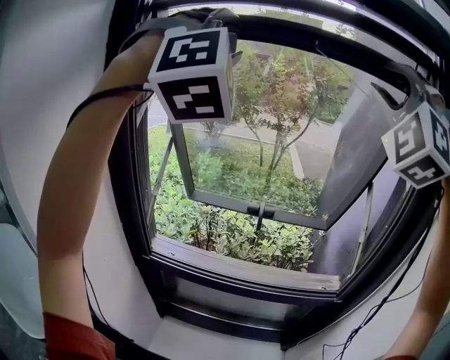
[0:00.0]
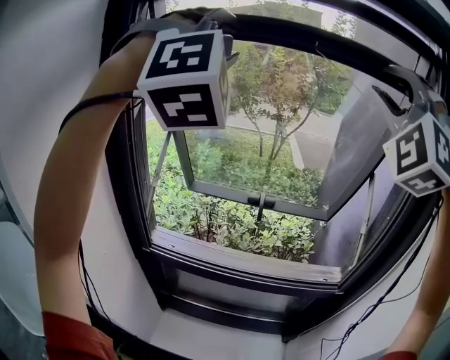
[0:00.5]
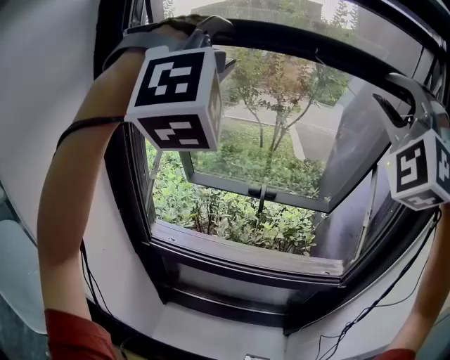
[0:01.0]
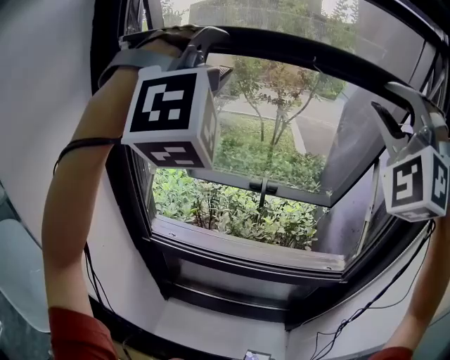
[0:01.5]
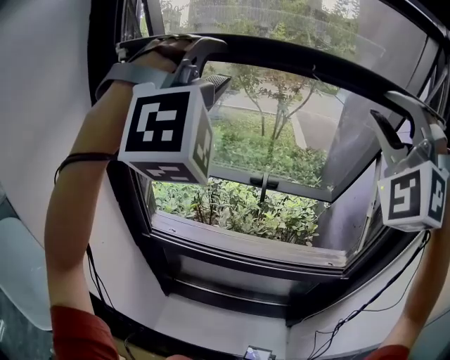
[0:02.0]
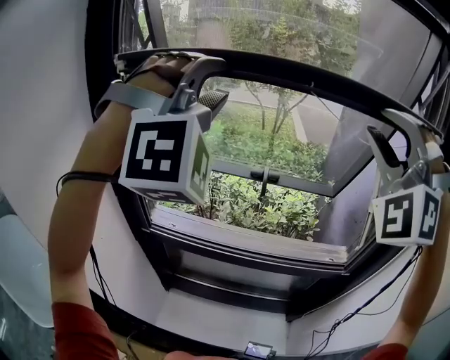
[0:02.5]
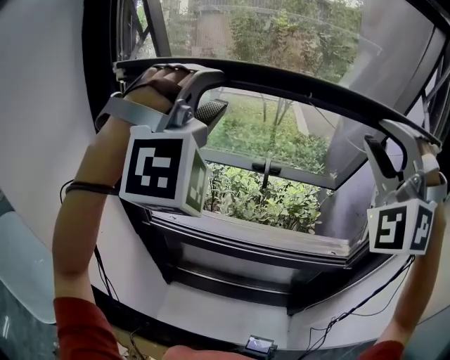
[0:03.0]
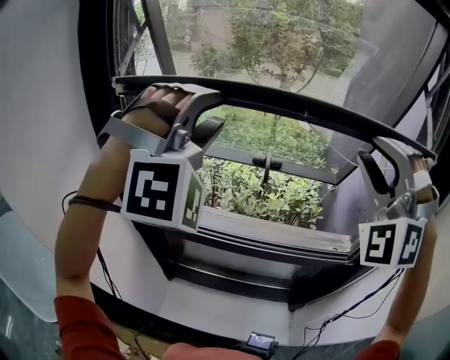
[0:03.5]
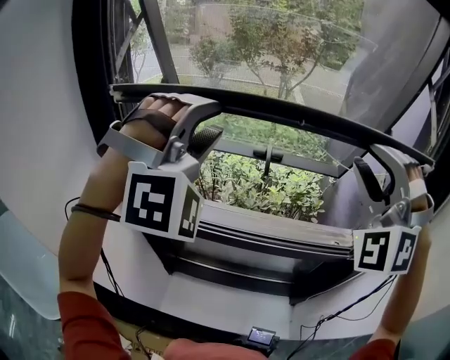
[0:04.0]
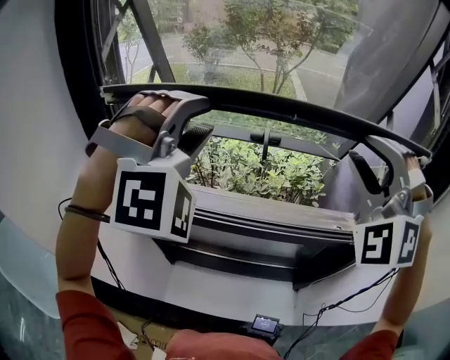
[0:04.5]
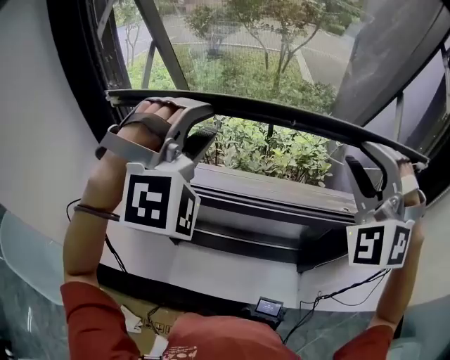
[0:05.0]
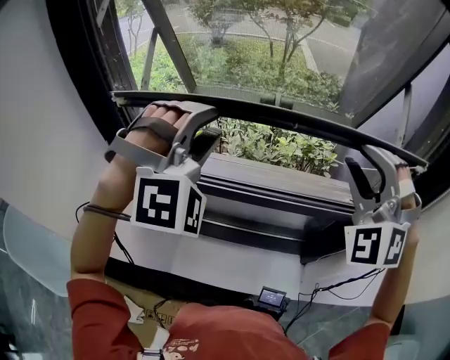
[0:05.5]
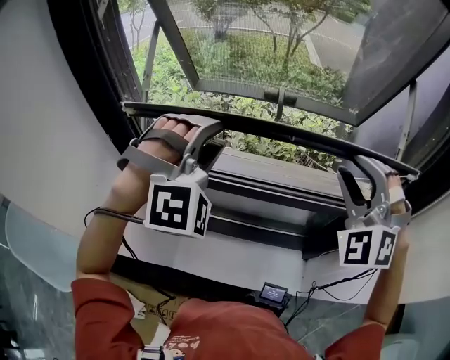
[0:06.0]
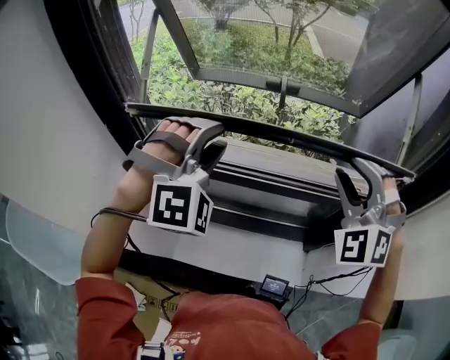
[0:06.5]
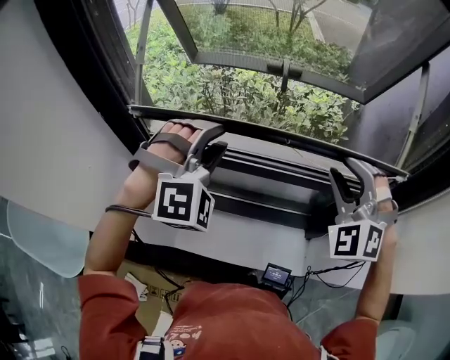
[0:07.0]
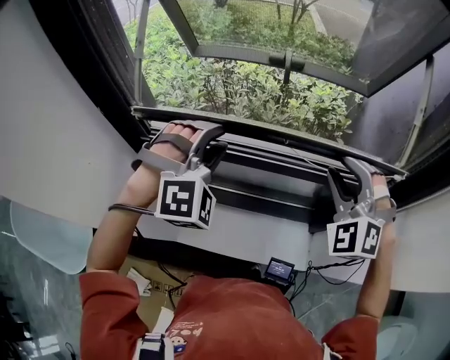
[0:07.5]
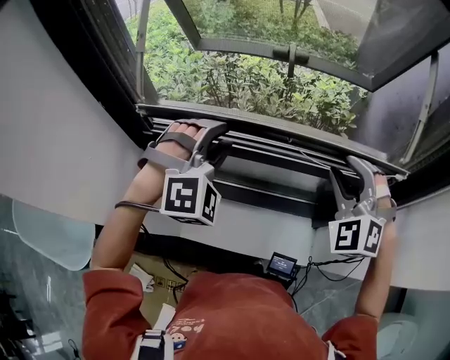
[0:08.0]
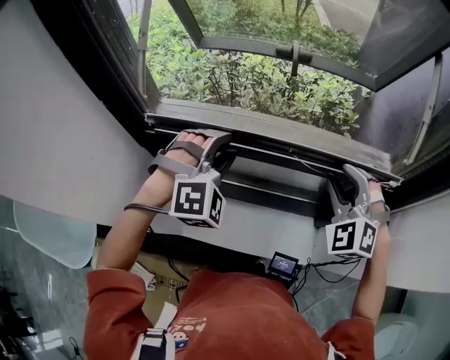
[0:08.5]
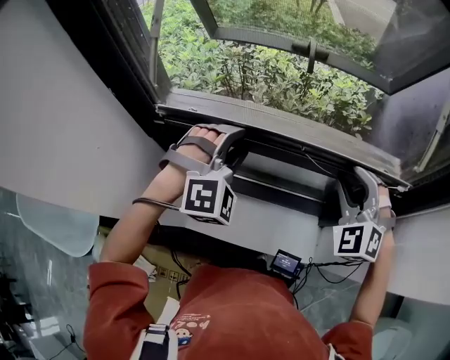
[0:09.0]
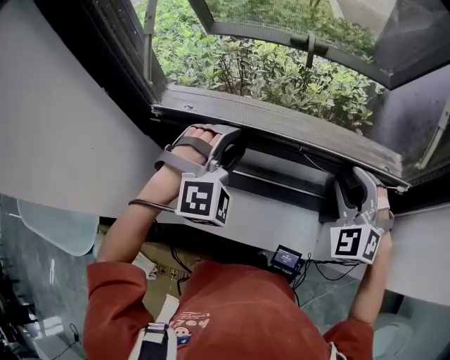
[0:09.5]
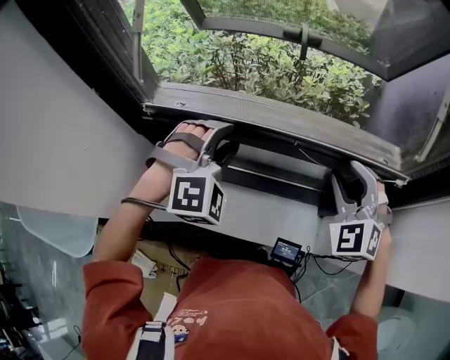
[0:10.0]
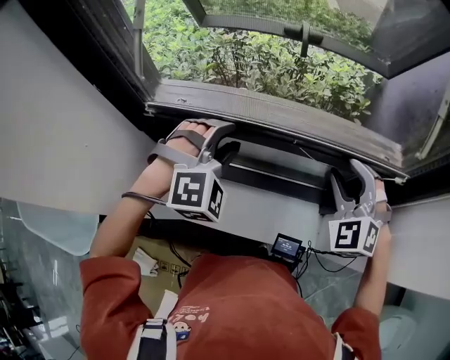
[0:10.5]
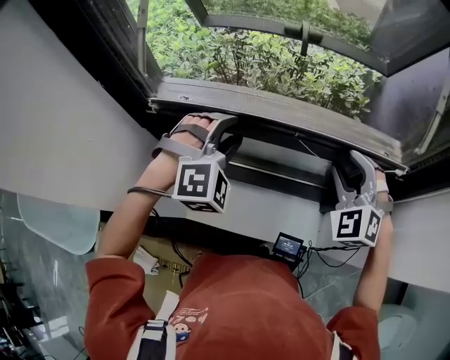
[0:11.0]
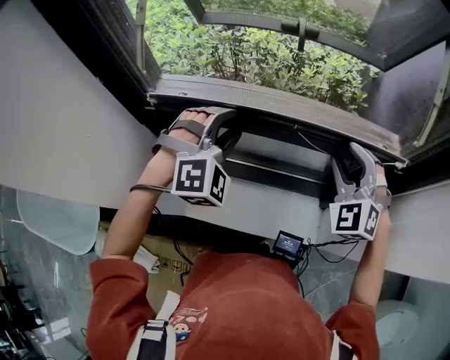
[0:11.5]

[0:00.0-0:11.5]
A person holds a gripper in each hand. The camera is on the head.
0.0 to 2.0 s: The grippers both shift downward by some 10 cm.
2.0 to 4.0 s: Both grippers travel together downward, approximately 15 cm.
4.0 to 6.0 s: The grippers both shift downward by some 20 cm. The right gripper turns by about 20 degrees.
6.0 to 7.5 s: Both grippers move downward, approximately 10 cm.
7.5 to 9.5 s: Both grippers move downward, some 5 cm.
9.5 to 11.5 s: The grippers make only small movements.

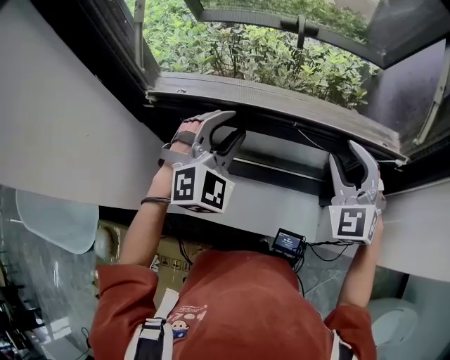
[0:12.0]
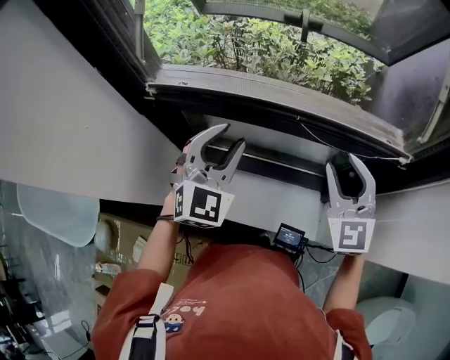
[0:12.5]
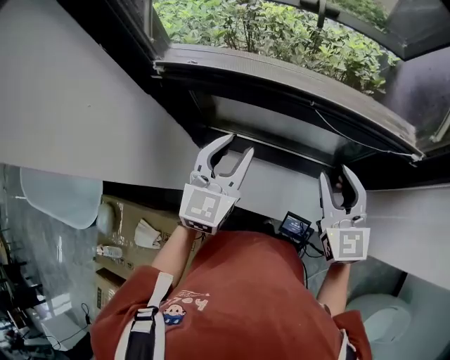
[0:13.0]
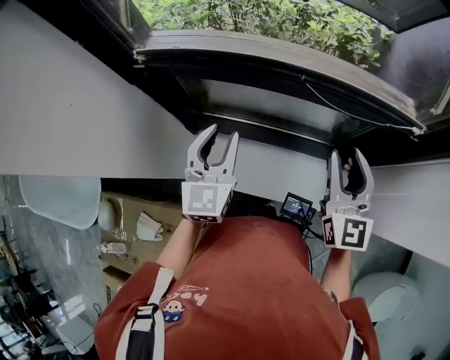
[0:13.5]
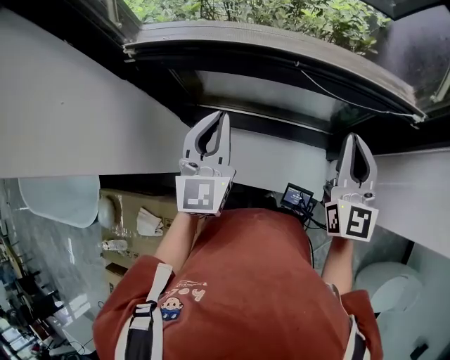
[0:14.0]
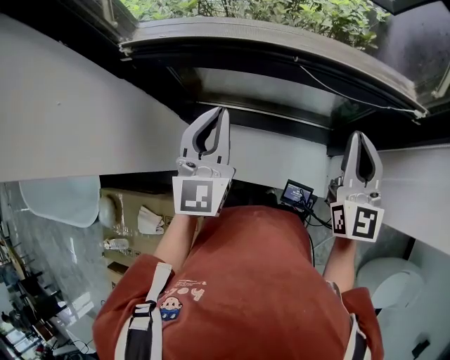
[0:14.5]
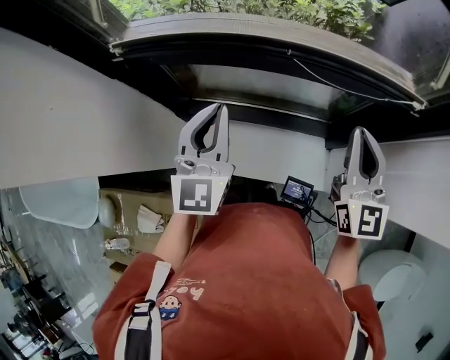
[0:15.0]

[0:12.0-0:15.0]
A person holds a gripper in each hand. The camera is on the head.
12.0 to 13.5 s: The left gripper is displaced downward and backward by roughly 10 cm, and rolls counterclockwise, seen from behind, by approximately 50 degrees. Meanwhile the right gripper is displaced backward by approximately 10 cm, and changes its angle by some 40 degrees.
13.5 to 15.0 s: The left gripper shifts by some 5 cm, and closes, while the right gripper closes its fingers.

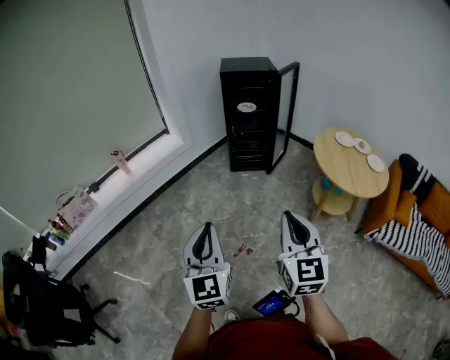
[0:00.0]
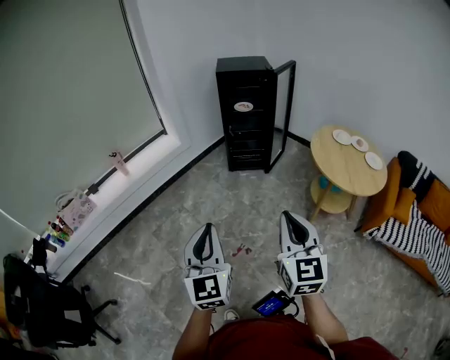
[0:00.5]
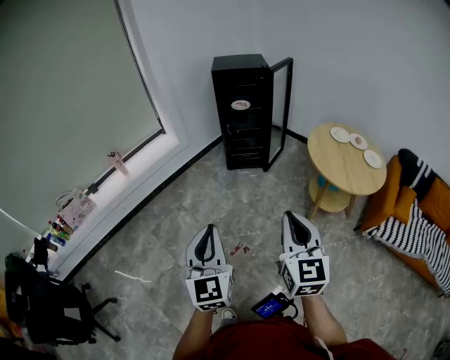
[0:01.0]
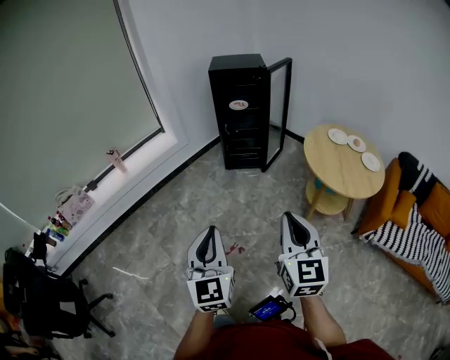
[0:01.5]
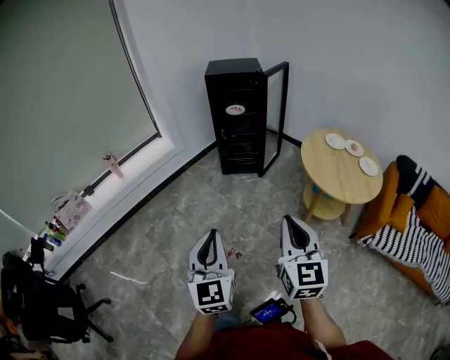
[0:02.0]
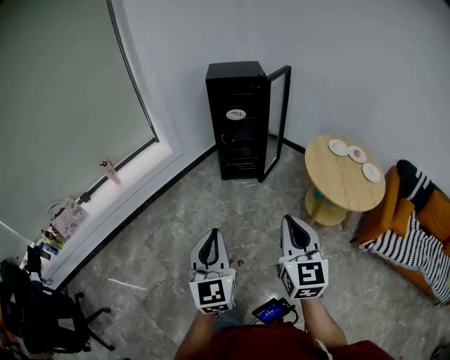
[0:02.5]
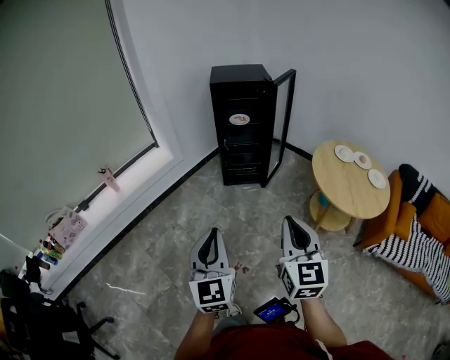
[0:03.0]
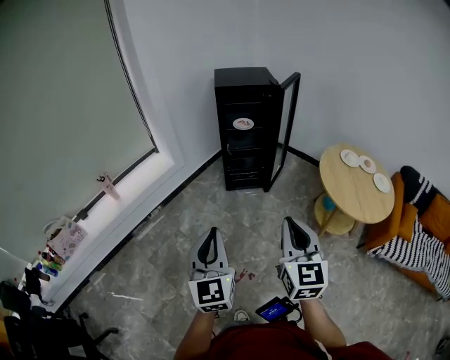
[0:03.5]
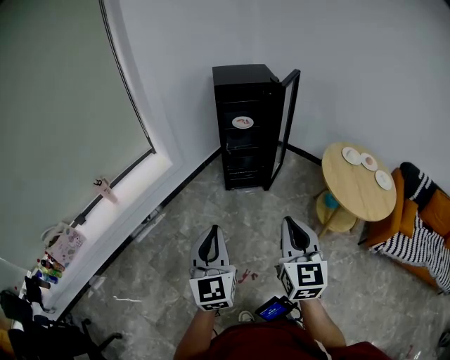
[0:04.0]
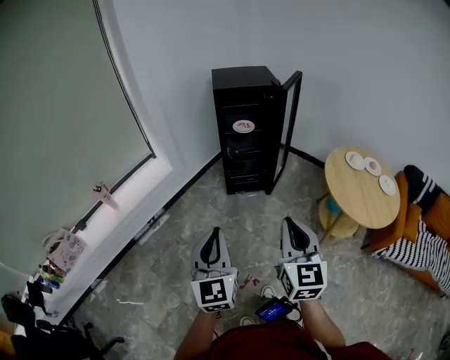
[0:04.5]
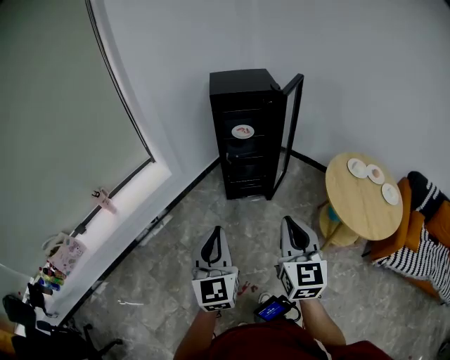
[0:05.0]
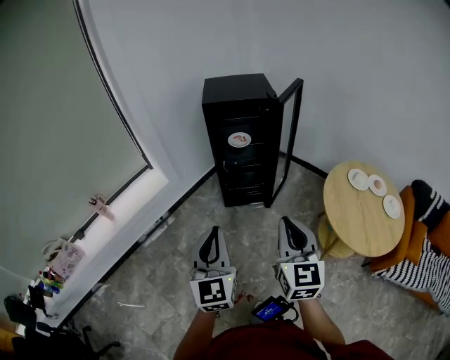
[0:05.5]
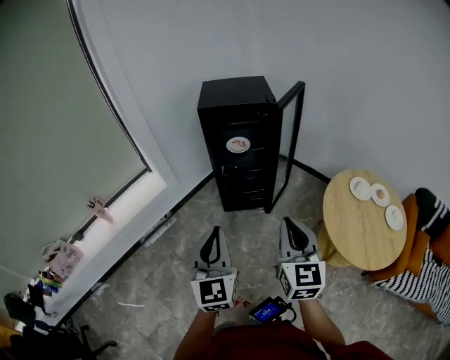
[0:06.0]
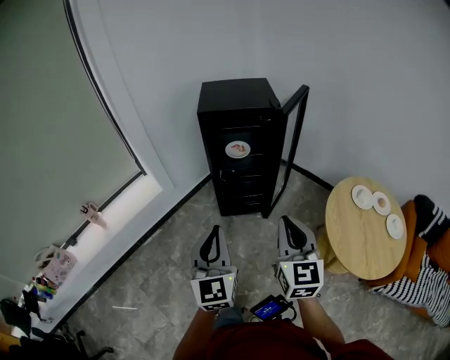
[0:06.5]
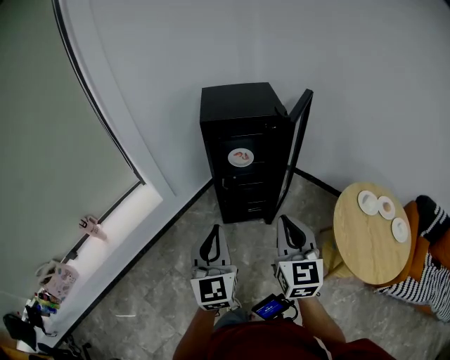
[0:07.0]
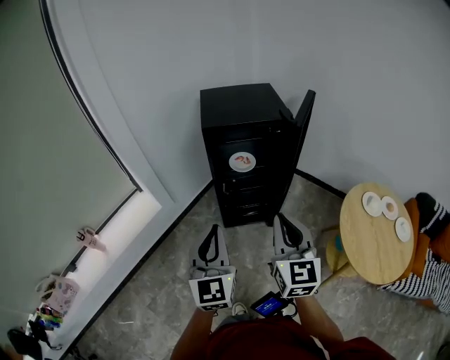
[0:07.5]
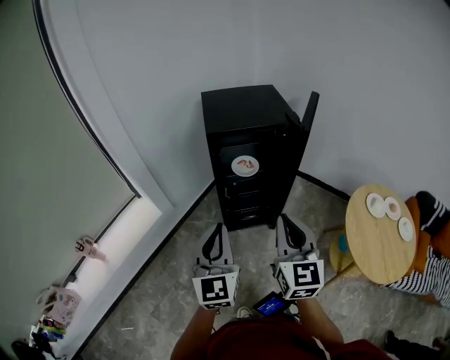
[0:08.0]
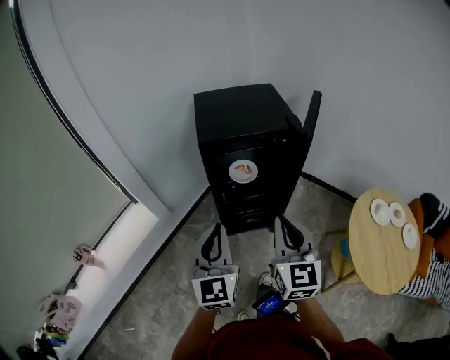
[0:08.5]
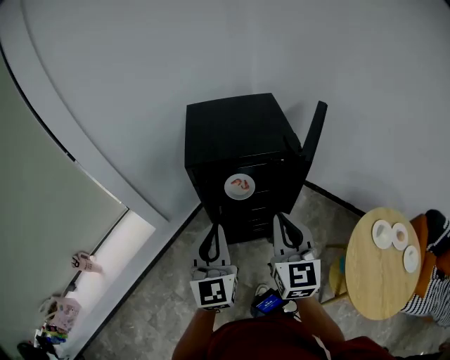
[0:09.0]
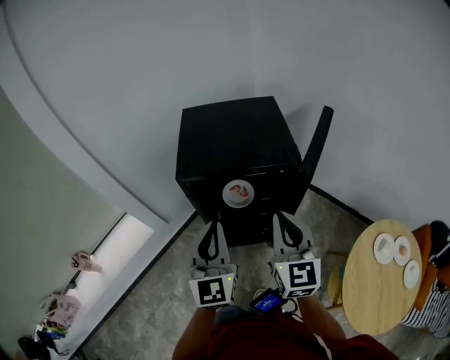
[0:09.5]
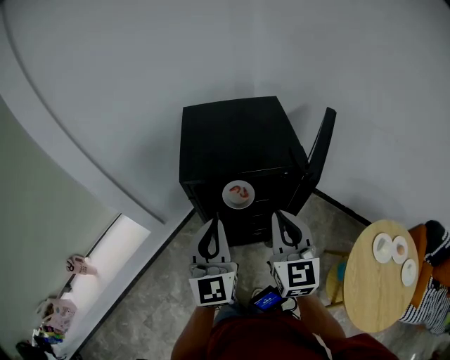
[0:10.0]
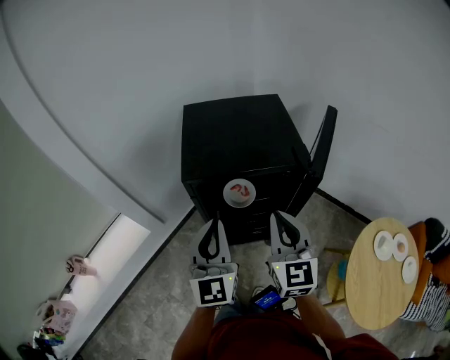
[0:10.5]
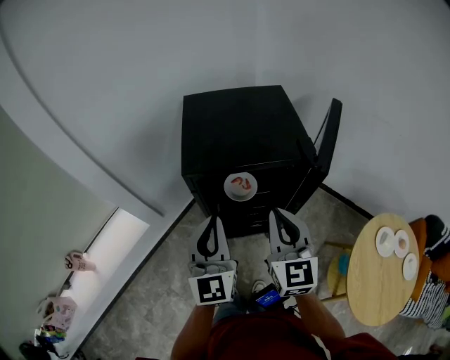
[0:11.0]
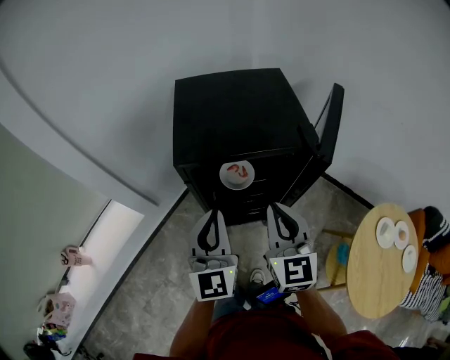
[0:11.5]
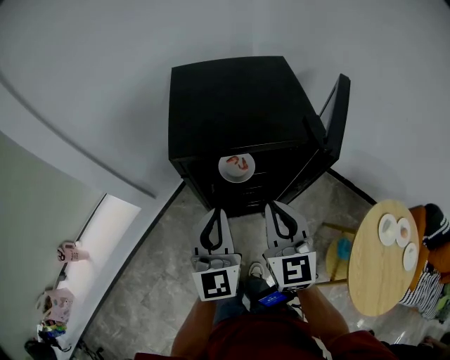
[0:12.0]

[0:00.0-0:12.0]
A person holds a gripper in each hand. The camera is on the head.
0.0 to 2.0 s: The two grippers go approximately 10 cm to the right.
2.0 to 4.0 s: Both grippers move forward and to the left, roughly 25 cm.
4.0 to 6.0 s: The grippers both shift forward and to the right by some 25 cm.
6.0 to 8.0 s: Both grippers move forward and to the left, about 25 cm.
8.0 to 10.0 s: The grippers both shift forward by some 25 cm.
10.0 to 12.0 s: Both grippers move downward, about 5 cm.

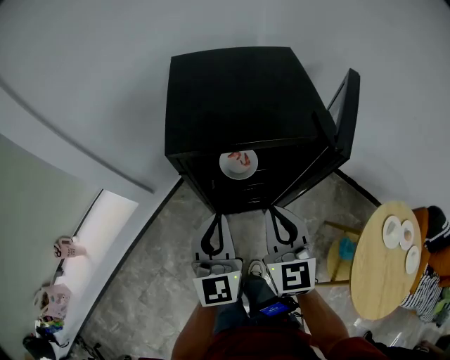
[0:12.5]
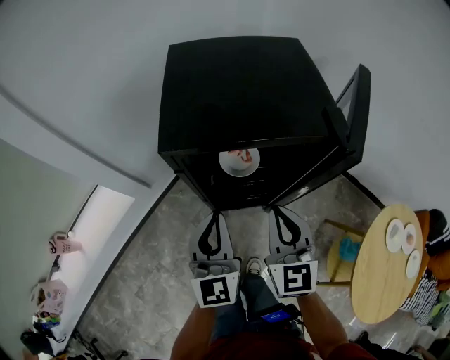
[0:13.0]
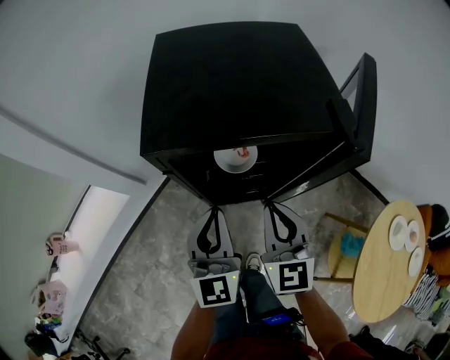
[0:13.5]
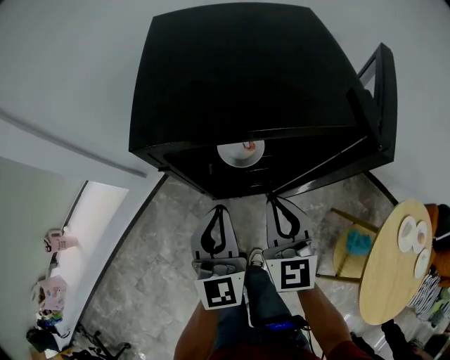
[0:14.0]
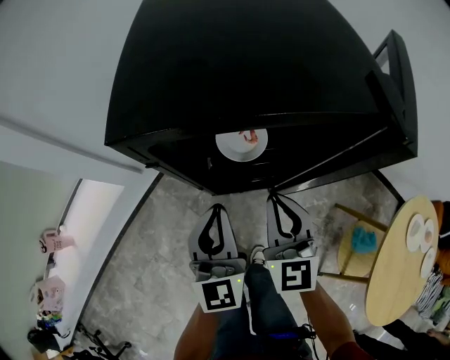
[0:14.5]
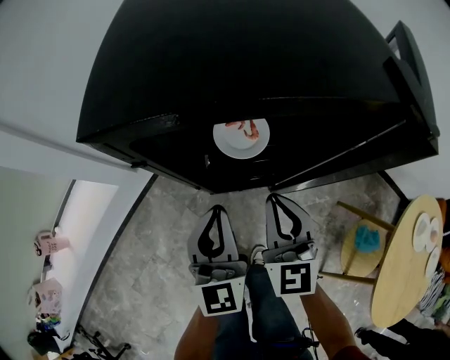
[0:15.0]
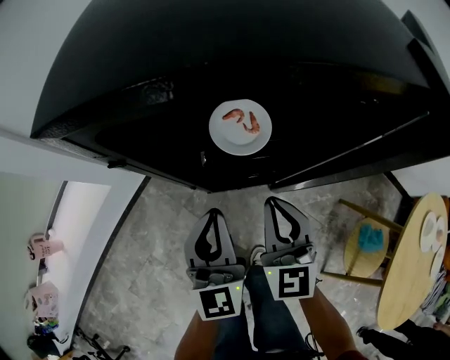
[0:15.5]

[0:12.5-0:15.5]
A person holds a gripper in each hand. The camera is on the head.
12.5 to 14.0 s: The two grippers go about 10 cm downward.
14.0 to 15.5 s: The grippers both shift downward by approximately 10 cm.
